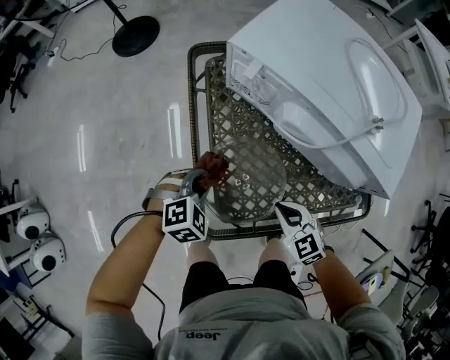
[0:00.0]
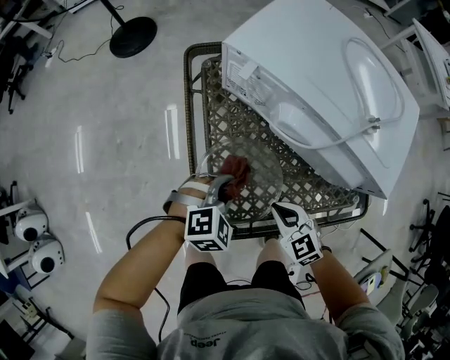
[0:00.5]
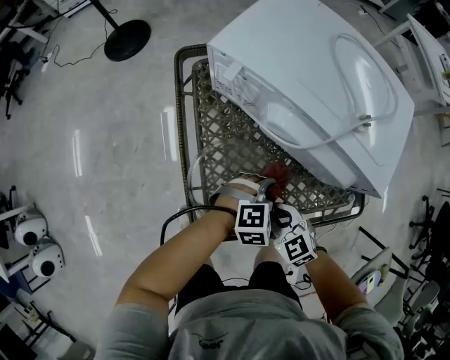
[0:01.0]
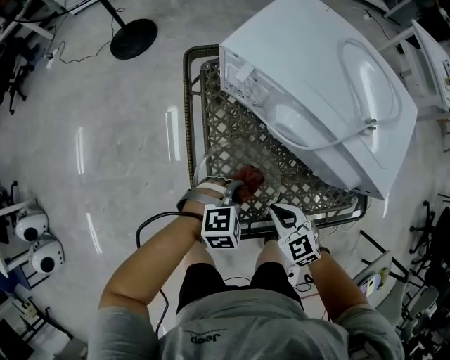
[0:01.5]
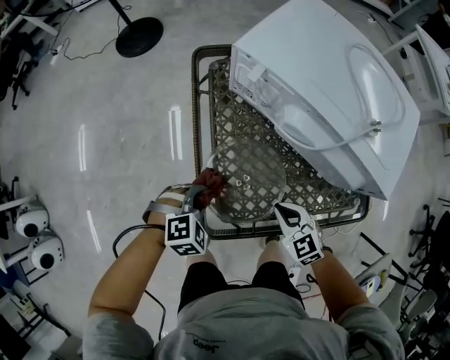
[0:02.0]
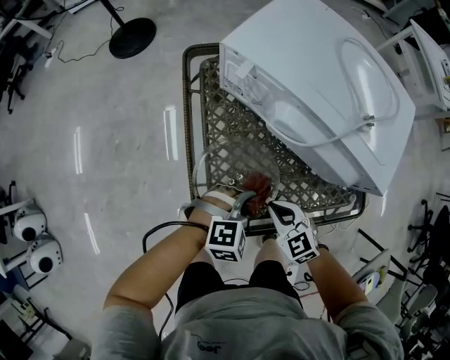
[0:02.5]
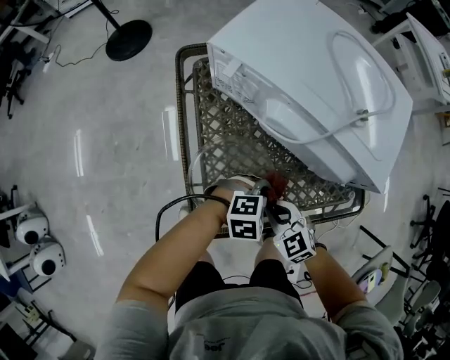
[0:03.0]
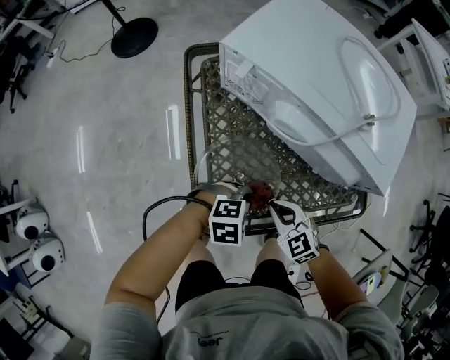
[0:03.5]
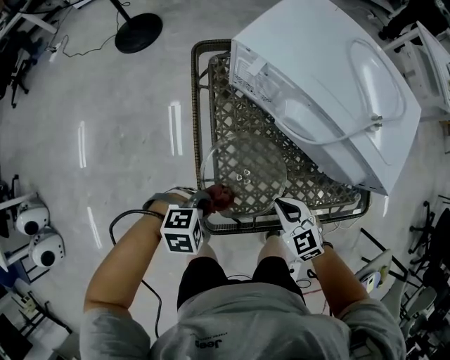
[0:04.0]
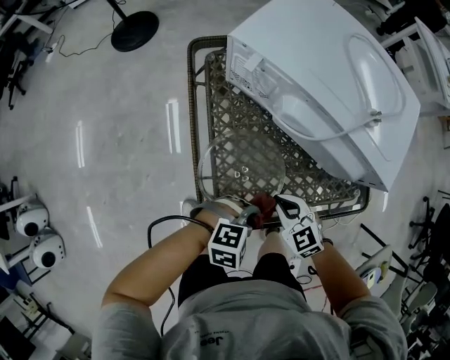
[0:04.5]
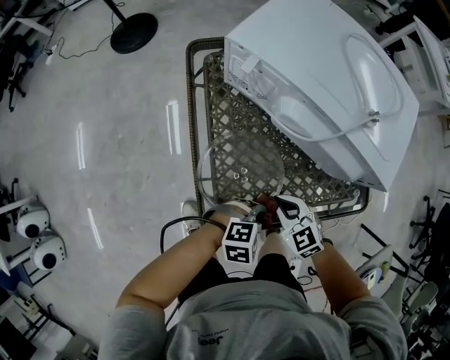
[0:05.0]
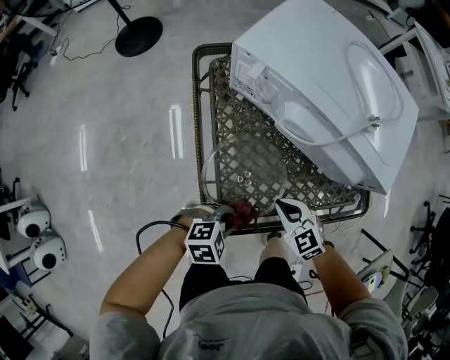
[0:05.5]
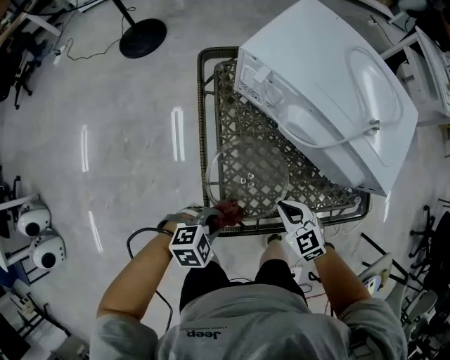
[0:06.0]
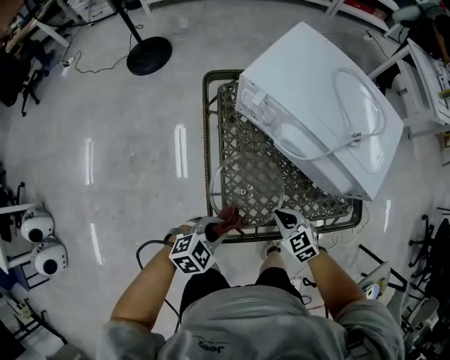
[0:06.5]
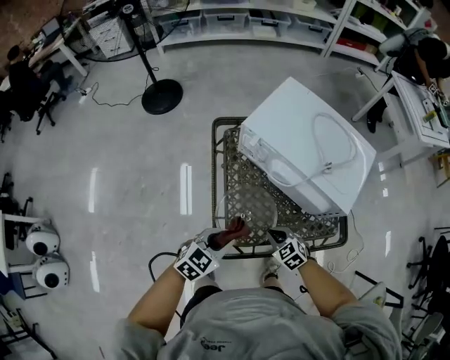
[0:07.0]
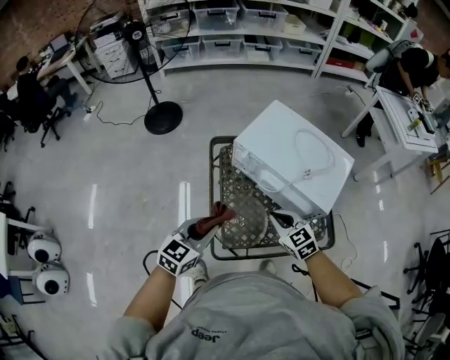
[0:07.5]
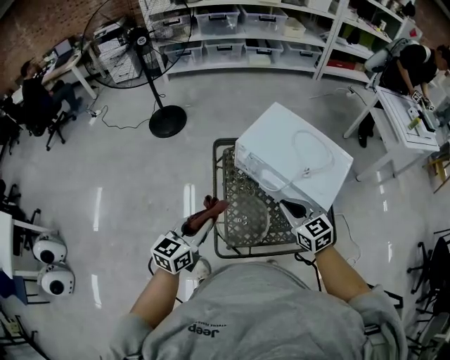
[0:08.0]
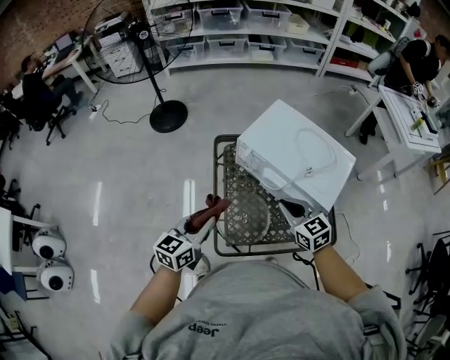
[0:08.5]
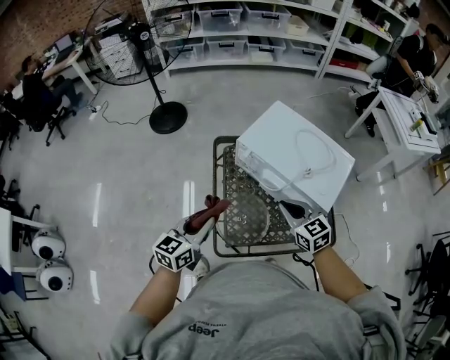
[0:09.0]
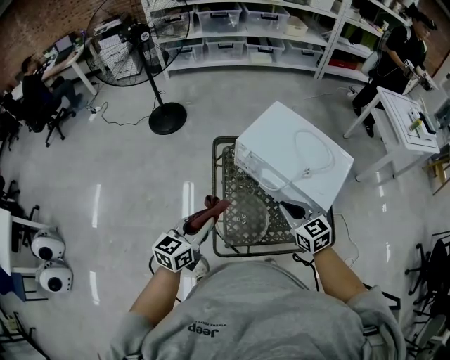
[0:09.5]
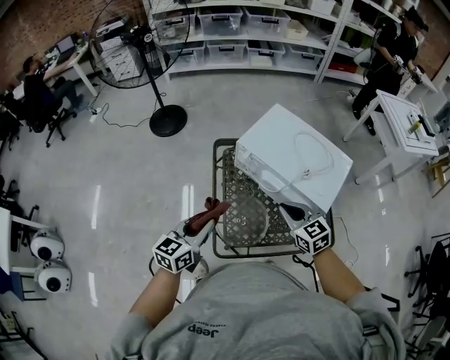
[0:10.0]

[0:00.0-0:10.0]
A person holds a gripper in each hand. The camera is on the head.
0:00.0 to 0:02.0: The left gripper moves approximately 20 cm to the right and comes back.
0:02.0 to 0:04.0: The left gripper rotates about 20 degrees.
0:06.0 to 0:08.0: The grippers both shift upward by some 30 cm. The left gripper points its fingers some 40 degrees further upward.
0:08.0 to 0:10.0: The grippers make only small movements.

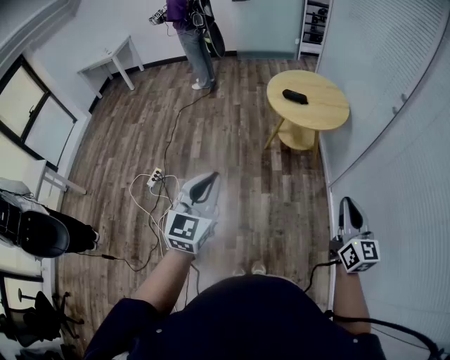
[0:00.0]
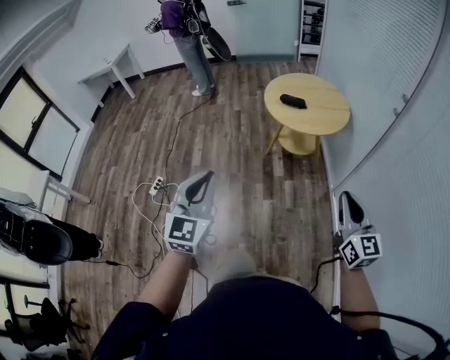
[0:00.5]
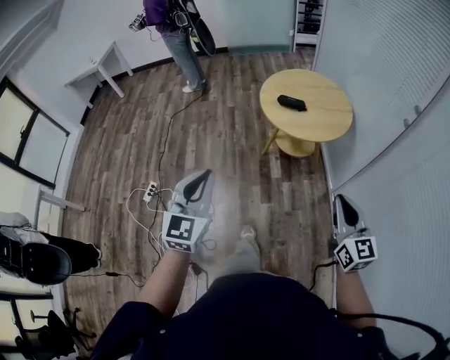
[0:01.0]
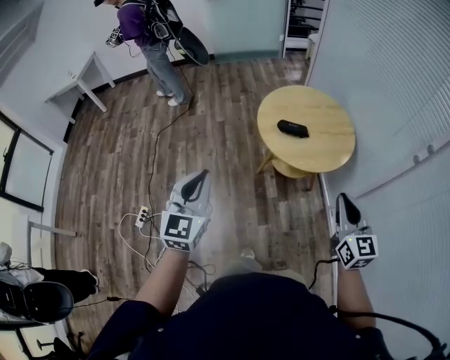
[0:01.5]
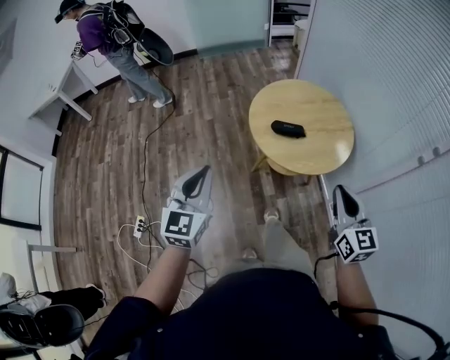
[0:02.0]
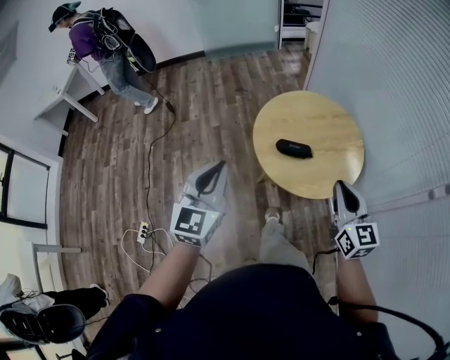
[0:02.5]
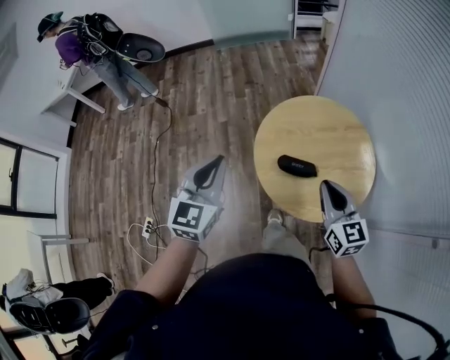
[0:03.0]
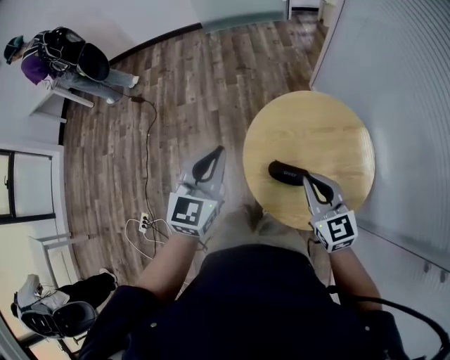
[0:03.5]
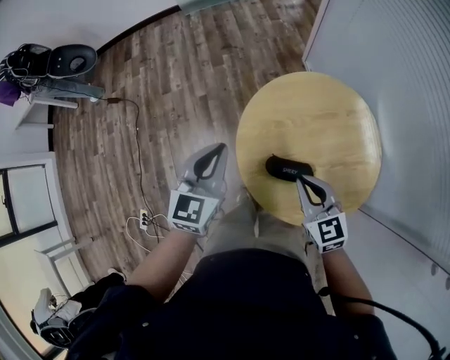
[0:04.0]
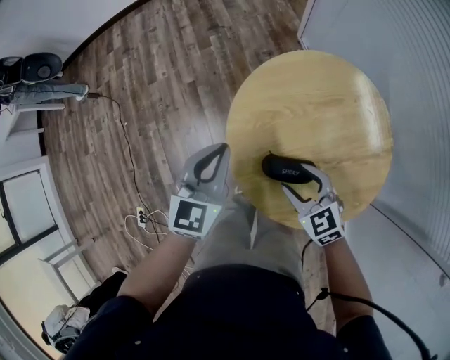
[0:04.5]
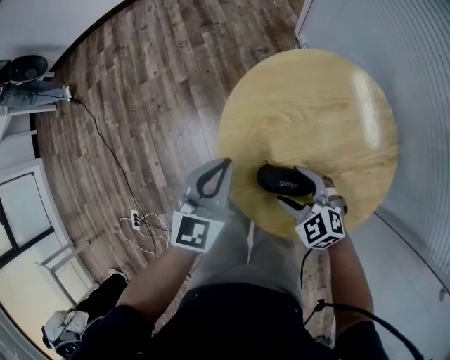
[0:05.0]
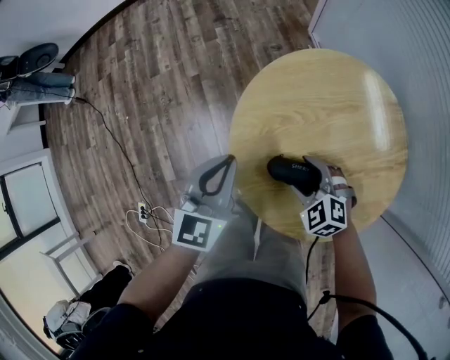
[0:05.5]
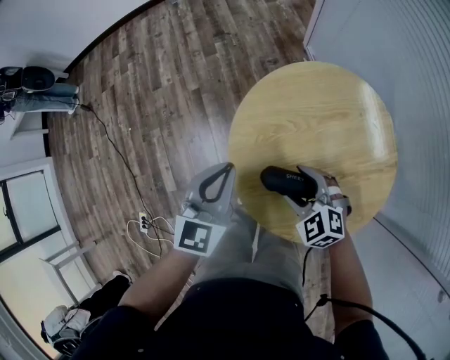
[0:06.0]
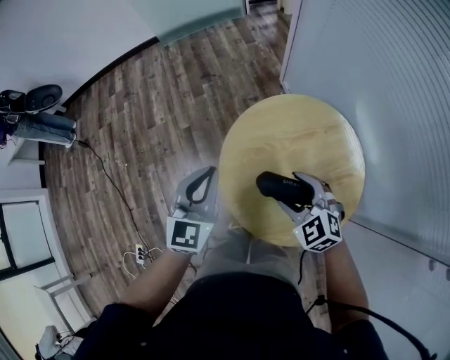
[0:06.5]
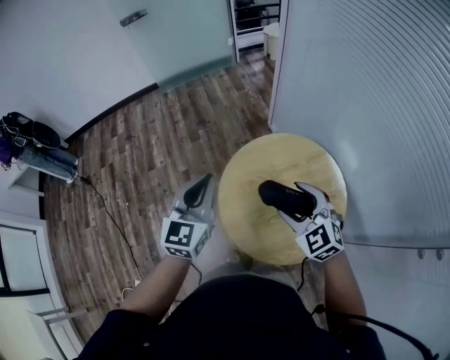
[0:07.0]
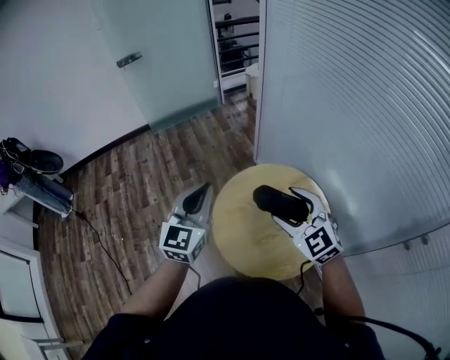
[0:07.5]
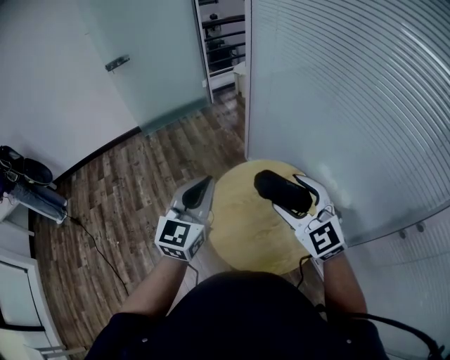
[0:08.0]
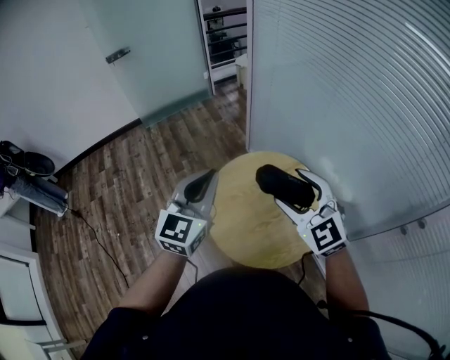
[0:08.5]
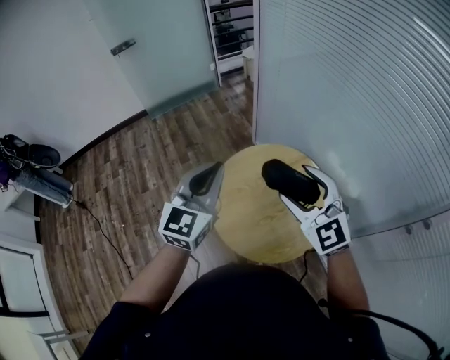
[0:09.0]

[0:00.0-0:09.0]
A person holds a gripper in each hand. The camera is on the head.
0:00.0 to 0:02.0: The pair of grippers is taken forward, approximately 50 cm.
0:02.0 to 0:04.5: The two grippers travel together, forward, roughly 40 cm. Both grippers travel together downward, some 30 cm. The right gripper turns by roughly 40 degrees, and opens its fingers.
0:04.5 to 0:07.0: Both grippers travel together upward, some 20 cm. The right gripper rotates roughly 20 degrees.
0:07.0 to 0:09.0: The right gripper goes about 20 cm upward, while the left gripper heads upward and to the right, covering approximately 15 cm.

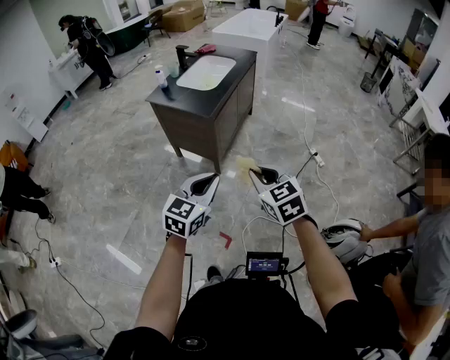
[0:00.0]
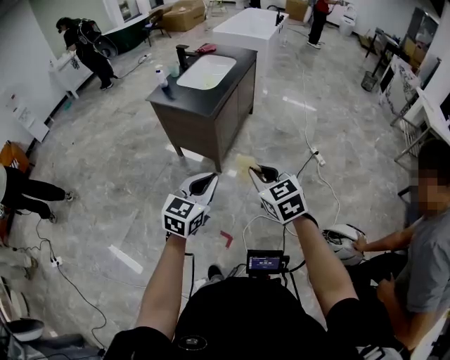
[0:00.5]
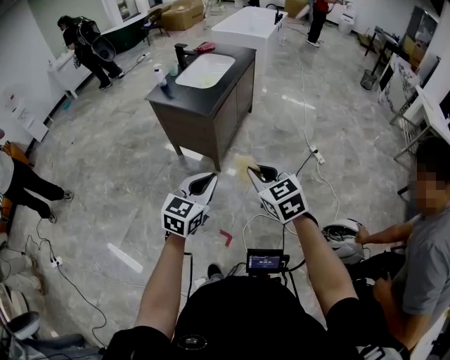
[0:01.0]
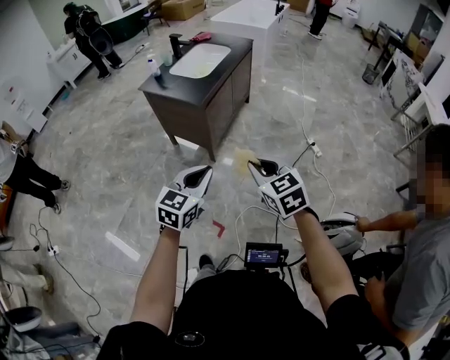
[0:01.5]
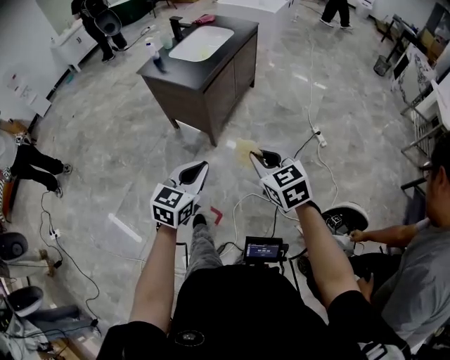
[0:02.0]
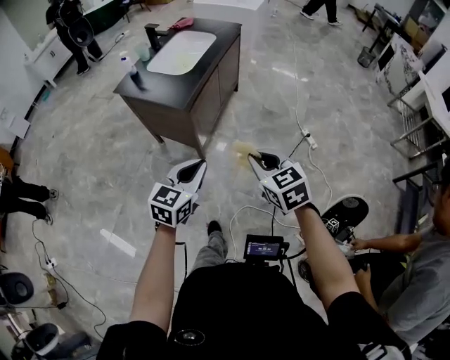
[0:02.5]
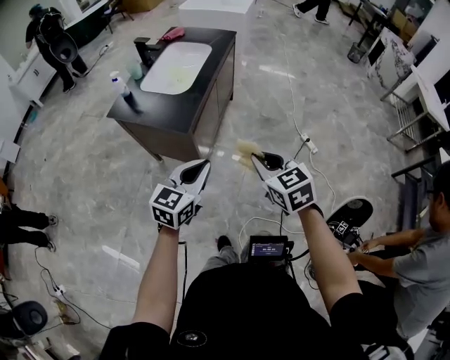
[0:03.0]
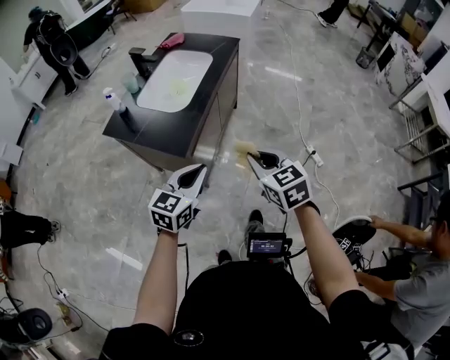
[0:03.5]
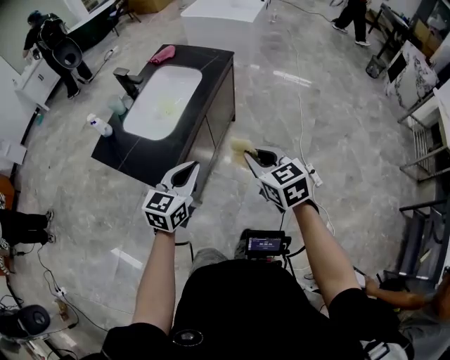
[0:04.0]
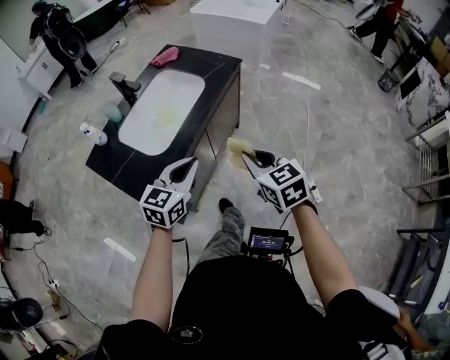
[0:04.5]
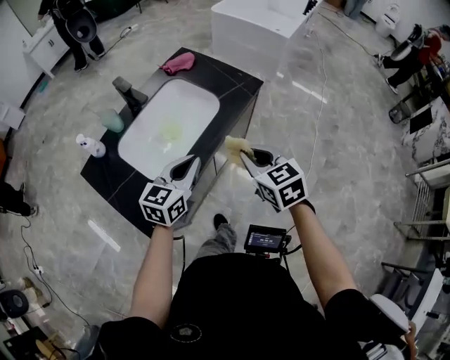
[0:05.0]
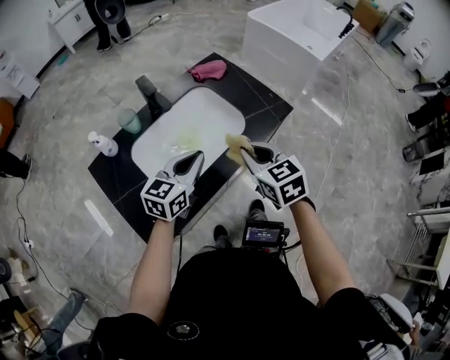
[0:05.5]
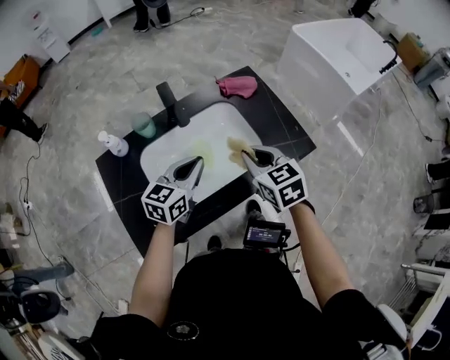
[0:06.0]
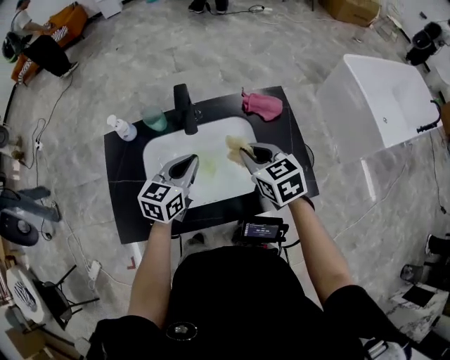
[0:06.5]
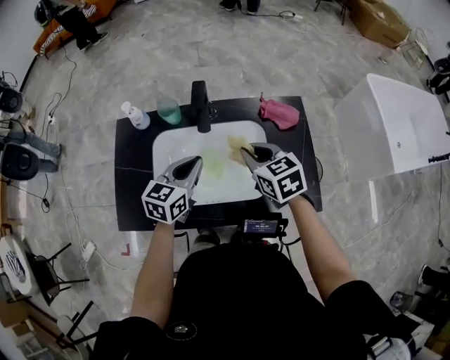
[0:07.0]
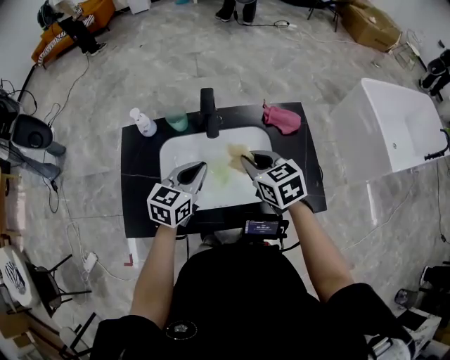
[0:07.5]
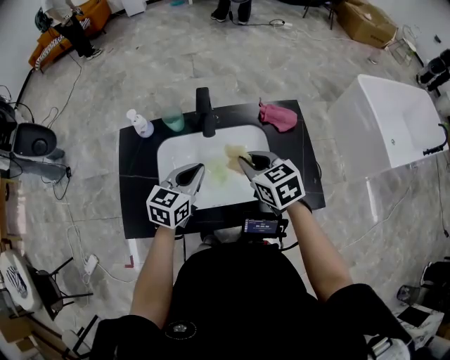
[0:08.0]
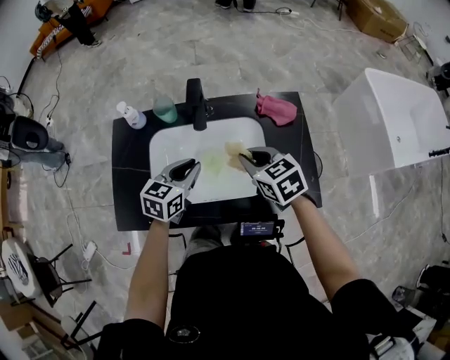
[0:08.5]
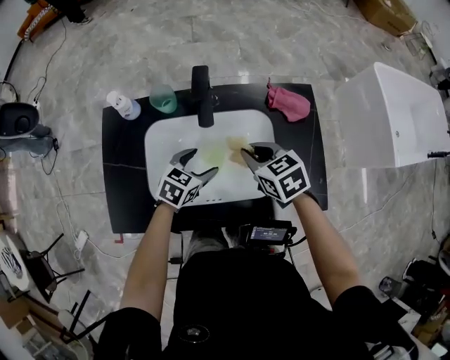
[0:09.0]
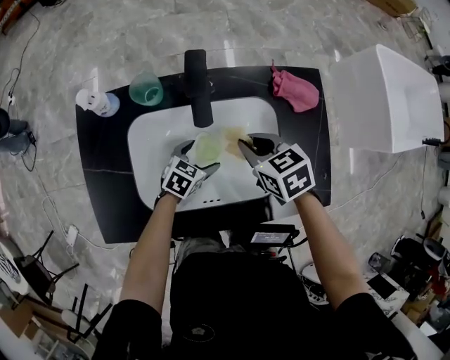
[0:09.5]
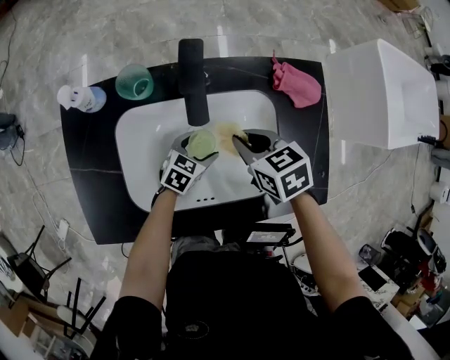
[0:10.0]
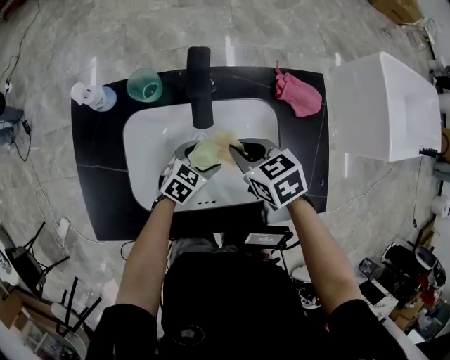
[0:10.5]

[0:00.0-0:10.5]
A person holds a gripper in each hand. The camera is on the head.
0:00.0 to 0:02.0: The left gripper travels to the right by roughly 5 cm. The right gripper shifts about 10 cm to the right.
0:02.0 to 0:04.0: Both grippers are carried forward, roughly 50 cm.
0:04.0 to 0:06.5: The two grippers travel together, about 50 cm. The left gripper changes its angle by roughly 50 degrees; the right gripper rotates roughly 60 degrees.
0:06.5 to 0:08.5: The grippers move only a little.
0:08.5 to 0:10.5: The left gripper moves downward, roughly 20 cm, swivels approximately 30 degrees, and opens up, while the right gripper moves downward and to the left, some 10 cm.
